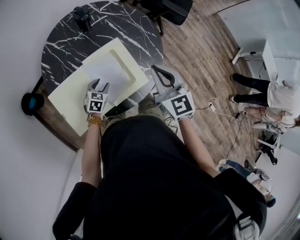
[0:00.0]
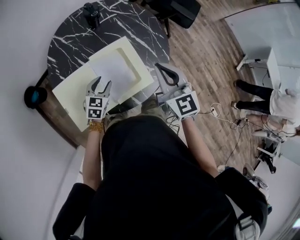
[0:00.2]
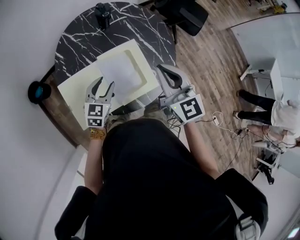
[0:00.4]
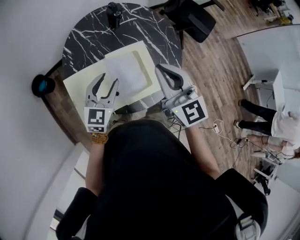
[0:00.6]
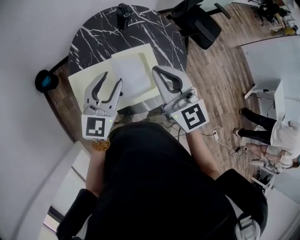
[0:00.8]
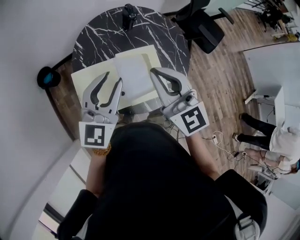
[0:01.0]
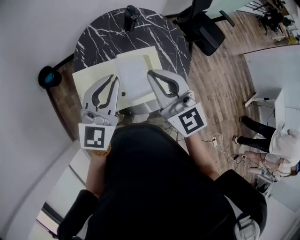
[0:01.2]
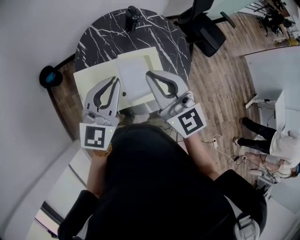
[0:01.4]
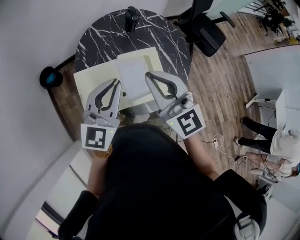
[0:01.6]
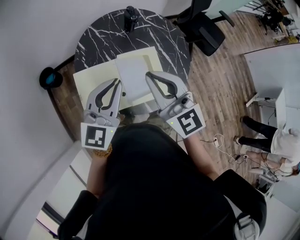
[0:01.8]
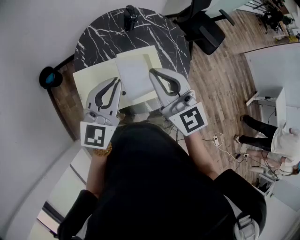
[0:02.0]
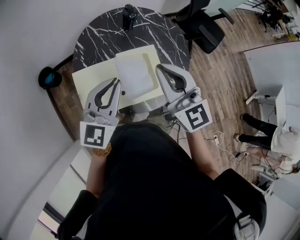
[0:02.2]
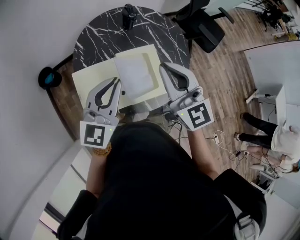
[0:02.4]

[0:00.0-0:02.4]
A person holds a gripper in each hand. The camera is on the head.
0:00.0 to 0:01.2: The right gripper moves approximately 20 cm, and turns by some 30 degrees, while the left gripper heads upward, covering about 40 cm, tips its fingers upward by approximately 40 degrees, and closes its fingers.
0:01.2 to 0:02.4: The grippers move only a little.

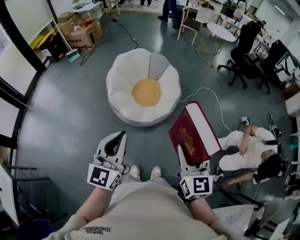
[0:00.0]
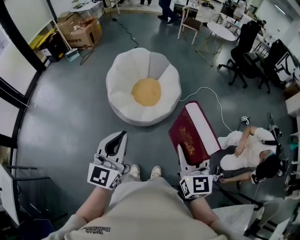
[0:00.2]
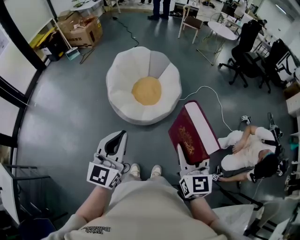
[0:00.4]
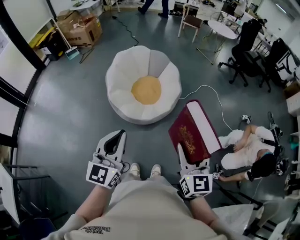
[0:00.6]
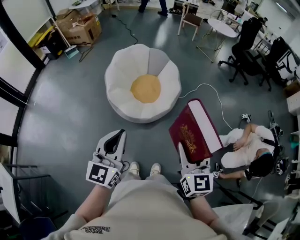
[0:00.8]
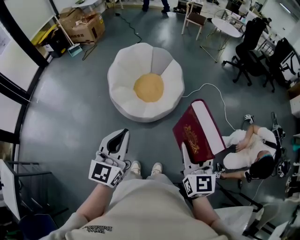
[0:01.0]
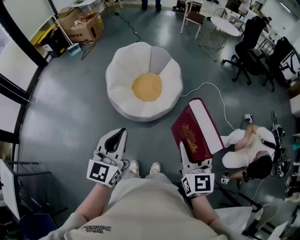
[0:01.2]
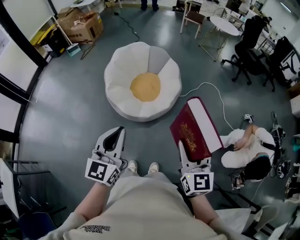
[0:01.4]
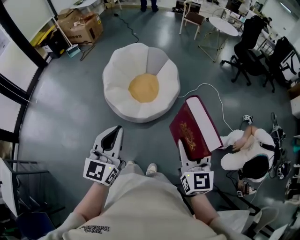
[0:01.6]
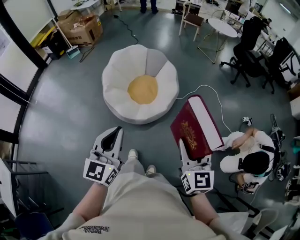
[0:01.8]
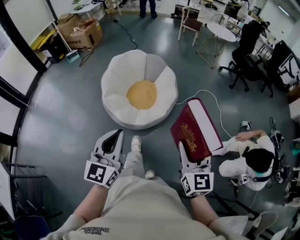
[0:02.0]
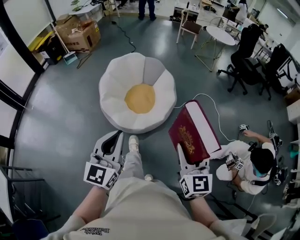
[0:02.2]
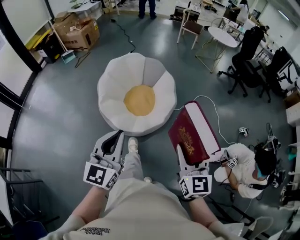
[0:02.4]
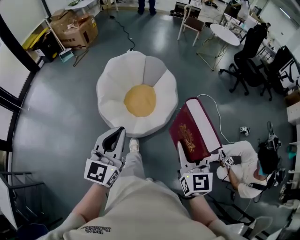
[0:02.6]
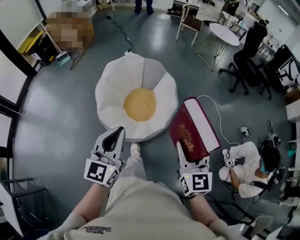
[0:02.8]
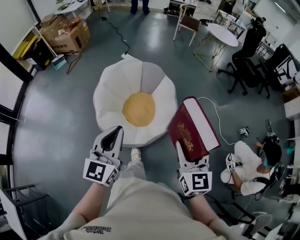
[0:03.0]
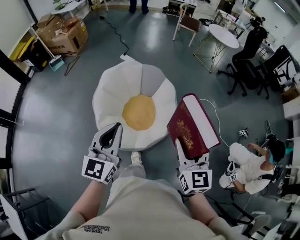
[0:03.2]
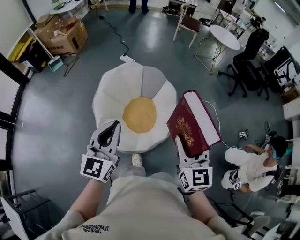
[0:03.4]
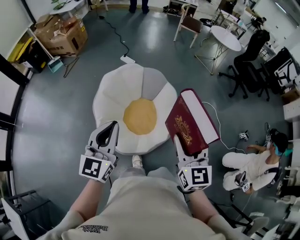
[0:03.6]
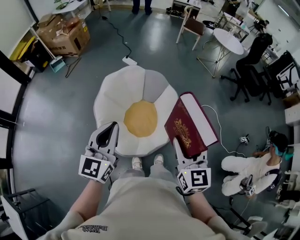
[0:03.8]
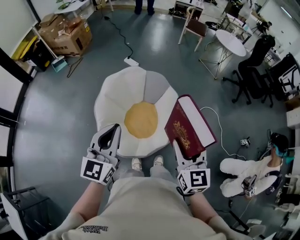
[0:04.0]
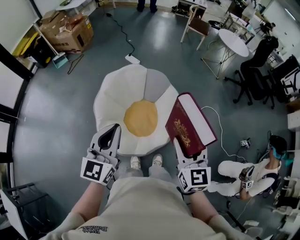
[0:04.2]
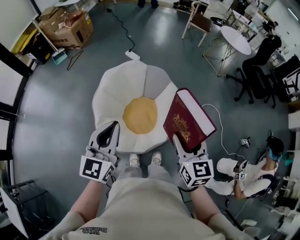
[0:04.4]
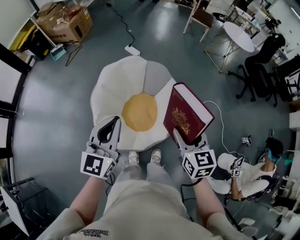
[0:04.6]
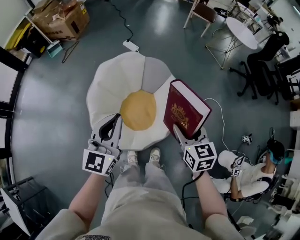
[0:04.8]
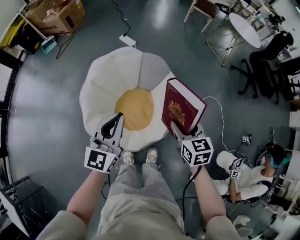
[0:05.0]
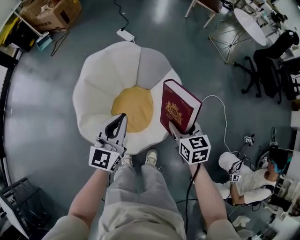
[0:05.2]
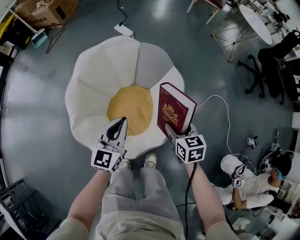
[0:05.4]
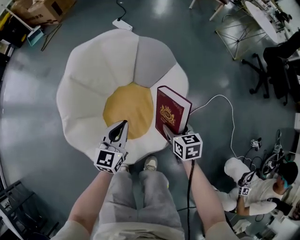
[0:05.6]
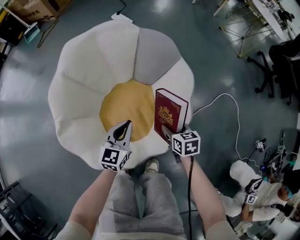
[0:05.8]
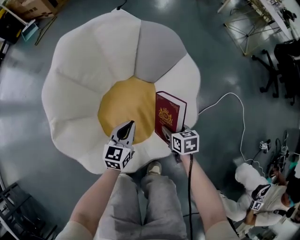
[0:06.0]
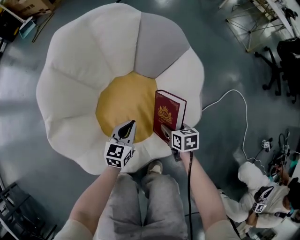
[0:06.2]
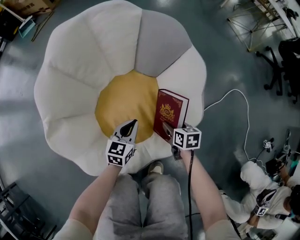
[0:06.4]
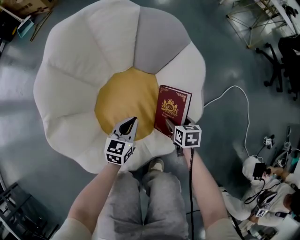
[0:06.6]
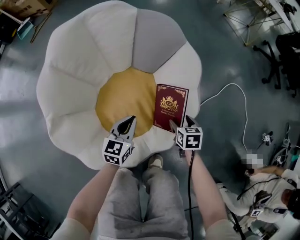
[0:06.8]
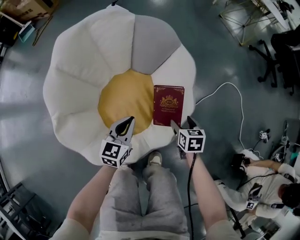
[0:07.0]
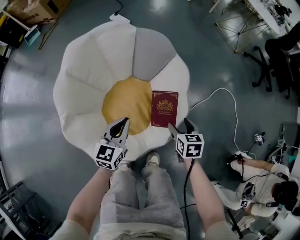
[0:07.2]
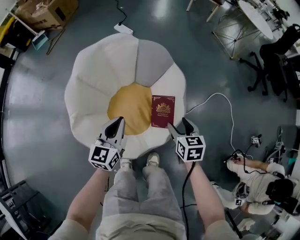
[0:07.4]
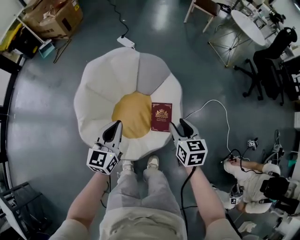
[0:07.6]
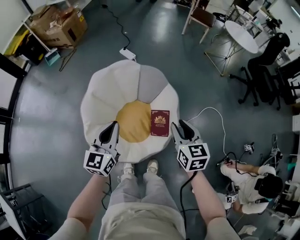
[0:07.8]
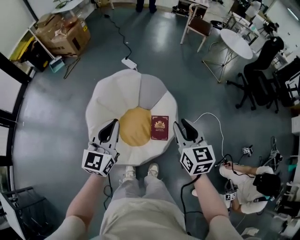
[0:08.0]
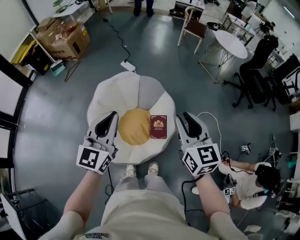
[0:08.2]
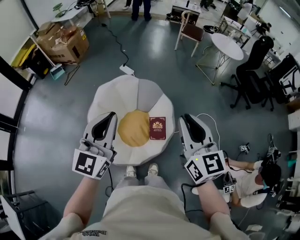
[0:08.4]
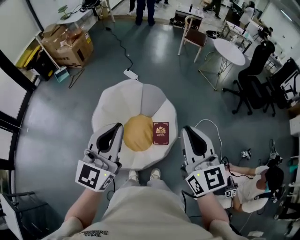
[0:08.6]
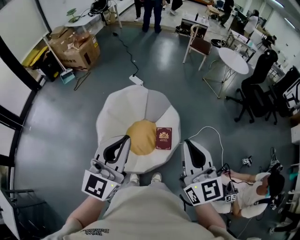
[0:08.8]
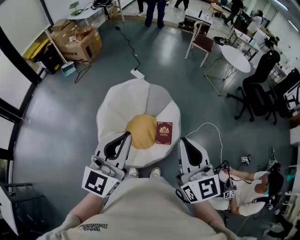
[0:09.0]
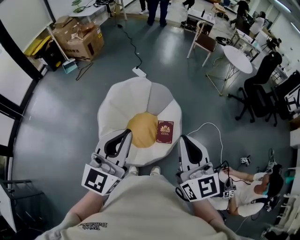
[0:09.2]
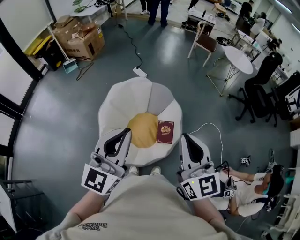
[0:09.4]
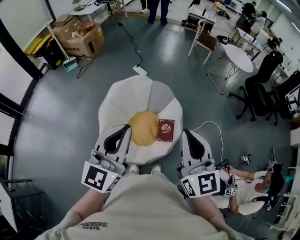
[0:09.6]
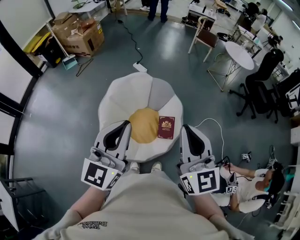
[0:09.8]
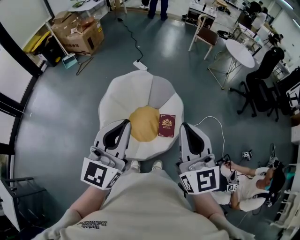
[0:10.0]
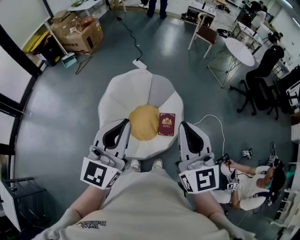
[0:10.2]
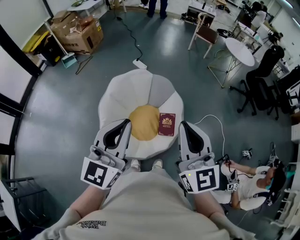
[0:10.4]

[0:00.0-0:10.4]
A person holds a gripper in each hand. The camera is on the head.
0:00.0 to 0:01.4: The right gripper is displaced to the right by roughly 5 cm, while the left gripper moves approximately 5 cm.
0:01.4 to 0:03.0: The grippers both shift forward by roughly 30 cm.
0:03.0 to 0:04.4: Both grippers travel together forward, some 20 cm.
0:04.4 to 0:06.0: The two grippers go approximately 70 cm downward. The left gripper turns by approximately 30 degrees, while the right gripper tips its fingers downward by about 30 degrees.
0:06.0 to 0:07.4: Both grippers travel together upward, roughly 25 cm.
0:07.4 to 0:09.0: Both grippers travel together upward, approximately 60 cm. The right gripper points its fingers approximately 50 degrees further upward, and closes up. Meanwhile the left gripper swivels some 30 degrees.
0:09.0 to 0:10.4: The grippers make only small movements.

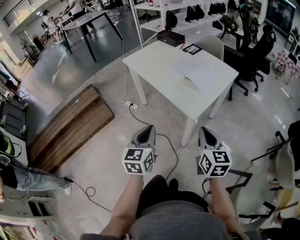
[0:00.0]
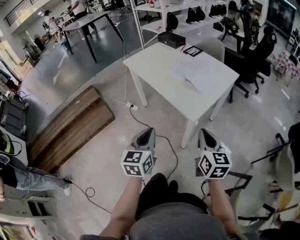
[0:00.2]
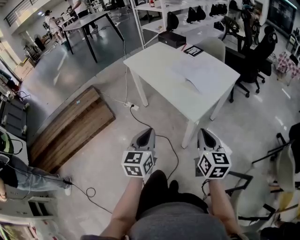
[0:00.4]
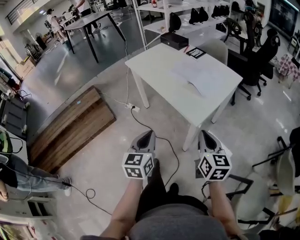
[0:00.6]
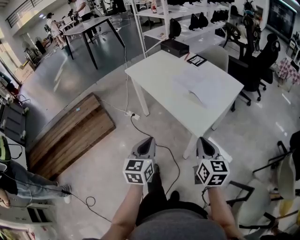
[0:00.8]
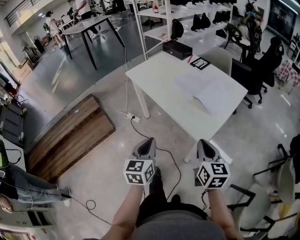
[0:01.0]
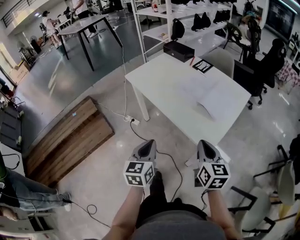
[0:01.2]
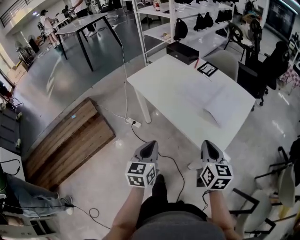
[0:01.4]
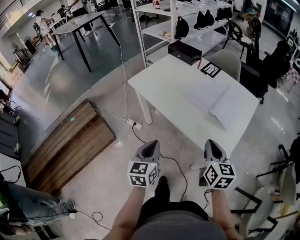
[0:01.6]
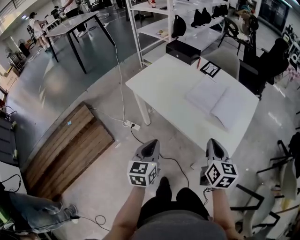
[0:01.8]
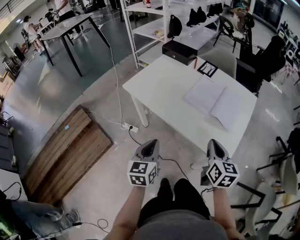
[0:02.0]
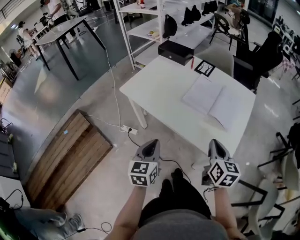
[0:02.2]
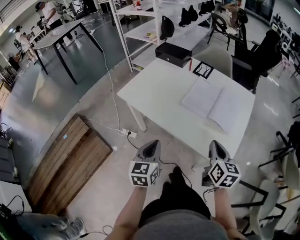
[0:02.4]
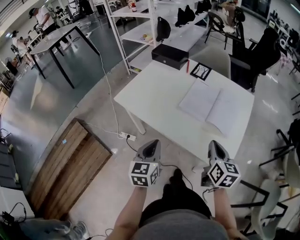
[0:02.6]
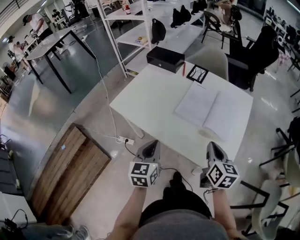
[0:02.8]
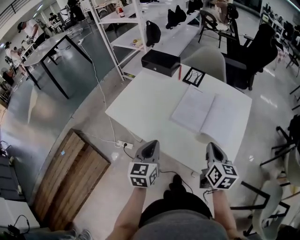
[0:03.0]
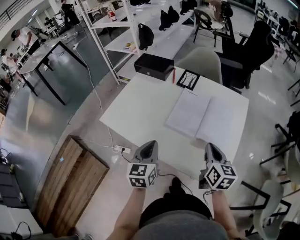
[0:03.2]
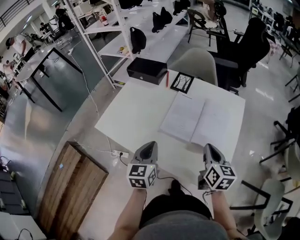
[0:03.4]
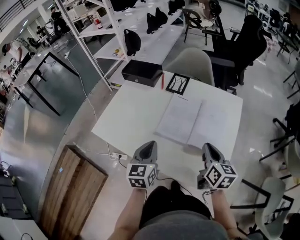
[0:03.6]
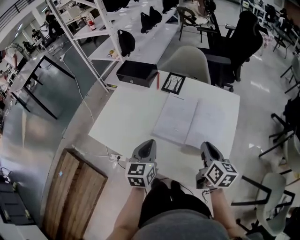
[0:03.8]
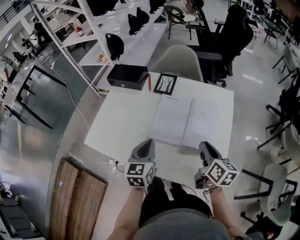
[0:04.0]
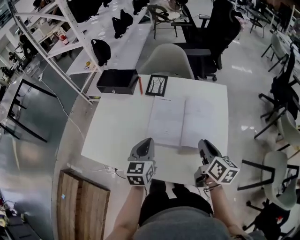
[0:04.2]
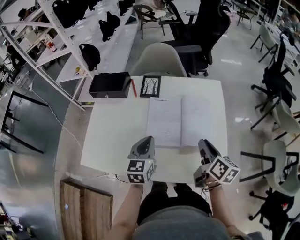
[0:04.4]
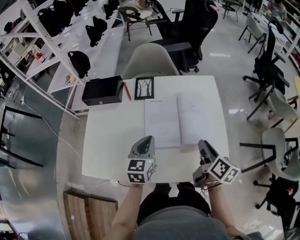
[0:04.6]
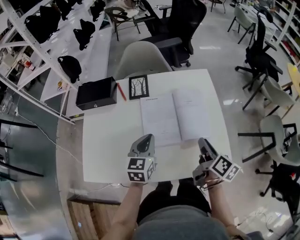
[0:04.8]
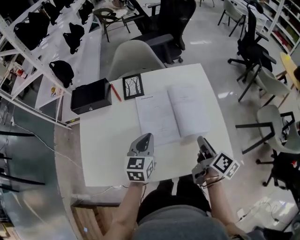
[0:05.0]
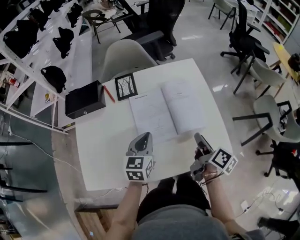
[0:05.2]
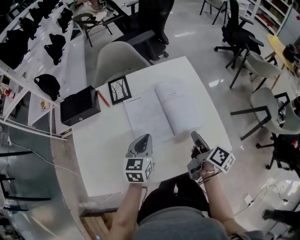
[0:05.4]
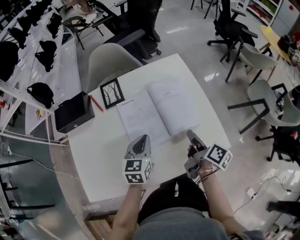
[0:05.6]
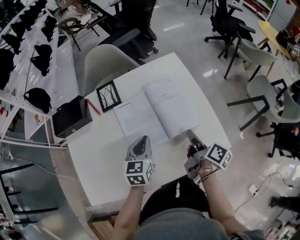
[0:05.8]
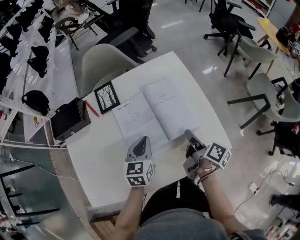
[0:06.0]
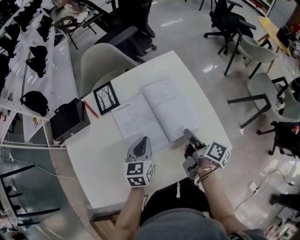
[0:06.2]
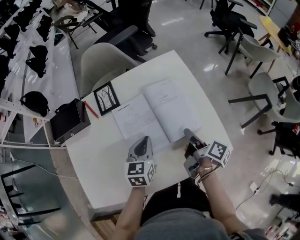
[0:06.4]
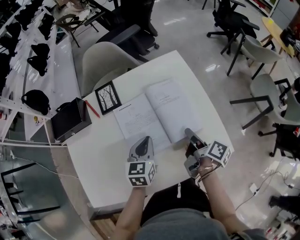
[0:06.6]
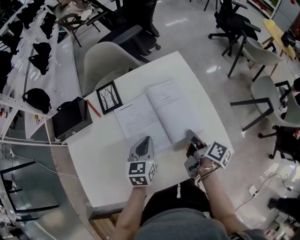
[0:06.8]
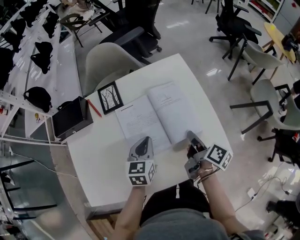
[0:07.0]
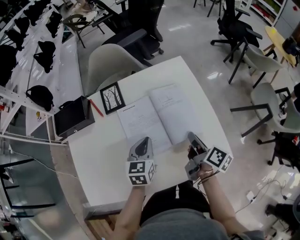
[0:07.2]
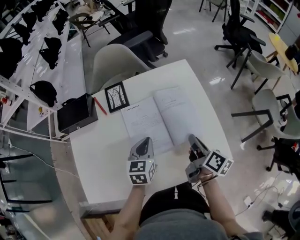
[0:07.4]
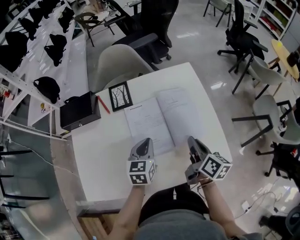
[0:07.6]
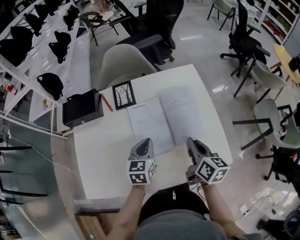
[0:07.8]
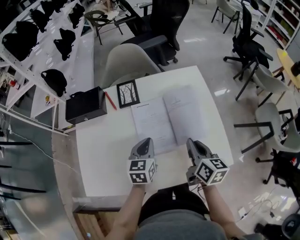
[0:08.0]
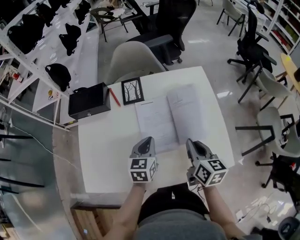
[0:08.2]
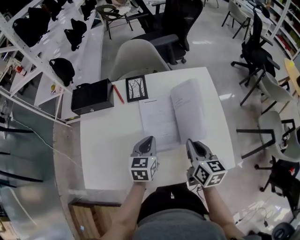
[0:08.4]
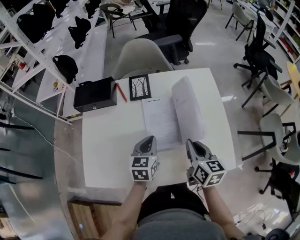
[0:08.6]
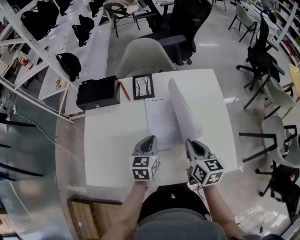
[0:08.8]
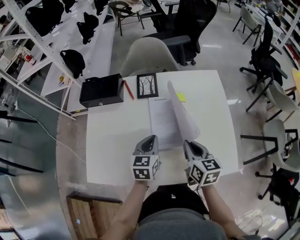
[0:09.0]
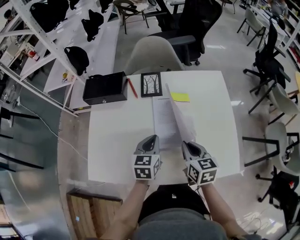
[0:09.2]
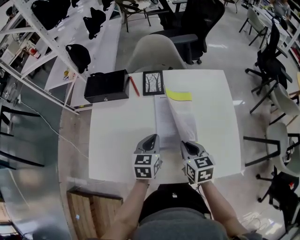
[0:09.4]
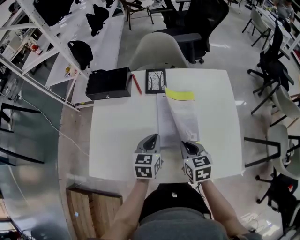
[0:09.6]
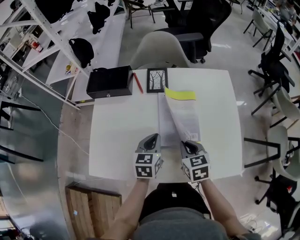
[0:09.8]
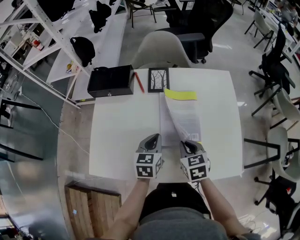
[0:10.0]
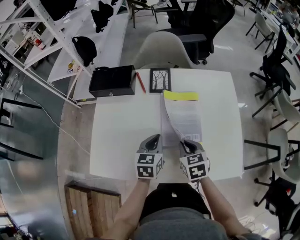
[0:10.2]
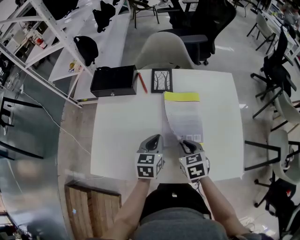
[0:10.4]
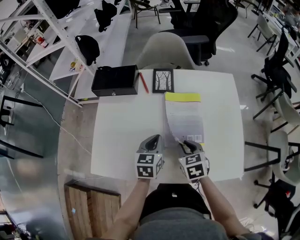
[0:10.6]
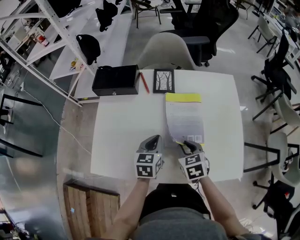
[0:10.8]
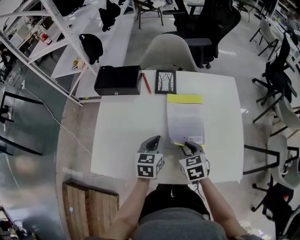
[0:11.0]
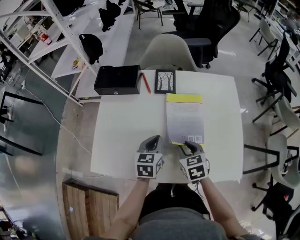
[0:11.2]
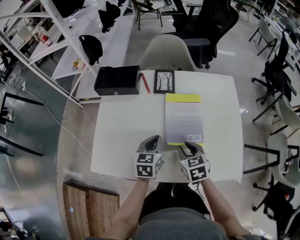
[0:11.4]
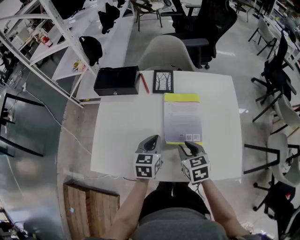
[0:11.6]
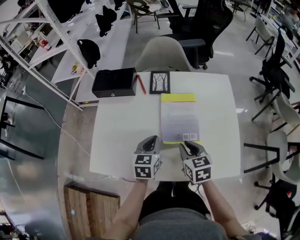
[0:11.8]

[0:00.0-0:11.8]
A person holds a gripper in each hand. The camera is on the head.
0:00.0 to 0:01.4: The grippers both shift forward and to the left by some 20 cm.
0:01.4 to 0:03.0: Both grippers travel together forward, roughly 20 cm. The right gripper turns by about 20 degrees.
0:03.0 to 0:04.4: The left gripper is displaced forward and to the right by approximately 20 cm, and turns by approximately 30 degrees, while the right gripper travels forward and to the right by approximately 10 cm, swivels some 30 degrees, and opens.
0:04.4 to 0:06.0: The right gripper heads downward, covering approximately 5 cm, rolls clockwise, seen from behind, by roughly 40 degrees, and opens up. The left gripper is displaced downward and forward by some 10 cm, and rotates approximately 30 degrees.
0:06.0 to 0:07.4: The right gripper closes.
0:07.4 to 0:08.8: The left gripper is displaced to the left by about 5 cm, while the right gripper moves to the left, some 10 cm, and twists some 40 degrees counterclockwise, seen from behind.
0:08.8 to 0:10.4: The right gripper goes some 10 cm to the left and downward, and rotates about 30 degrees.
0:10.4 to 0:11.8: The grippers stay close to where they were, moving slightly.
